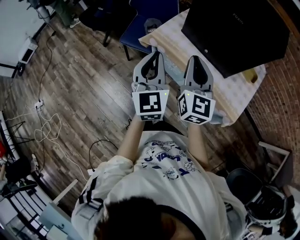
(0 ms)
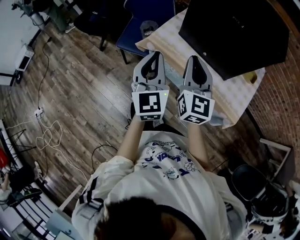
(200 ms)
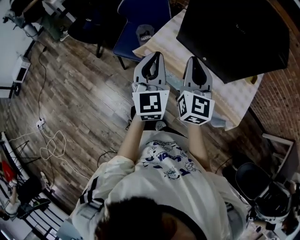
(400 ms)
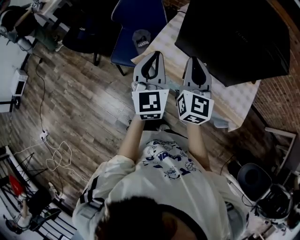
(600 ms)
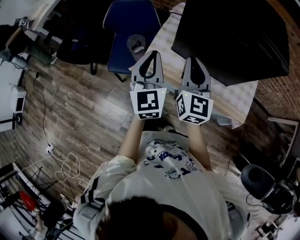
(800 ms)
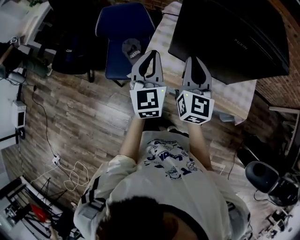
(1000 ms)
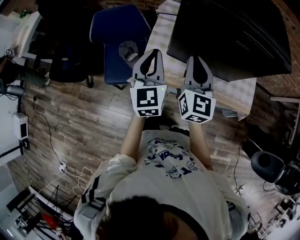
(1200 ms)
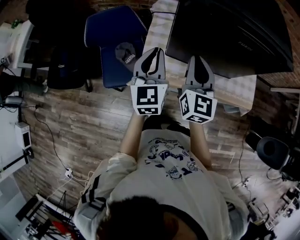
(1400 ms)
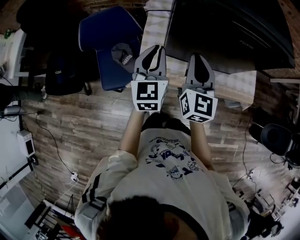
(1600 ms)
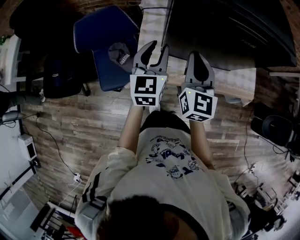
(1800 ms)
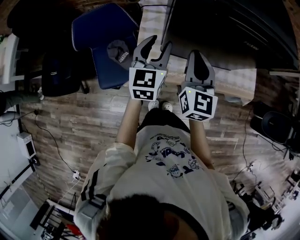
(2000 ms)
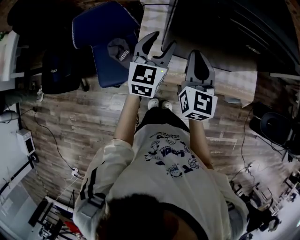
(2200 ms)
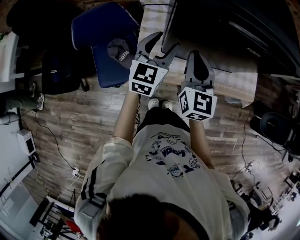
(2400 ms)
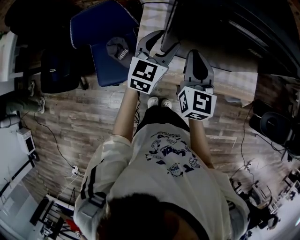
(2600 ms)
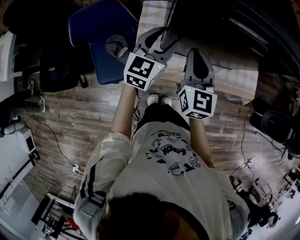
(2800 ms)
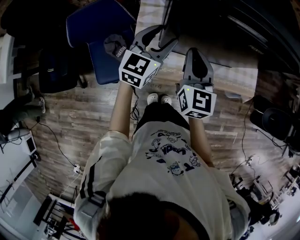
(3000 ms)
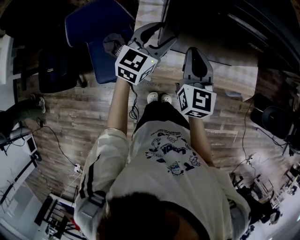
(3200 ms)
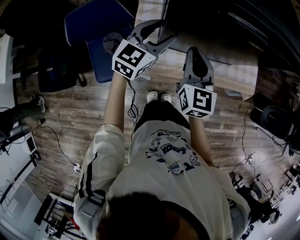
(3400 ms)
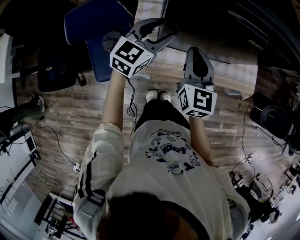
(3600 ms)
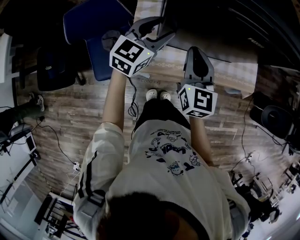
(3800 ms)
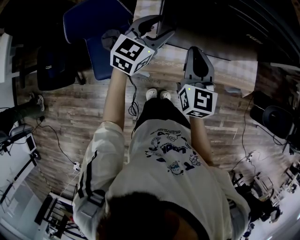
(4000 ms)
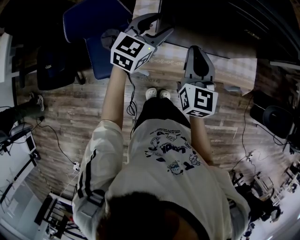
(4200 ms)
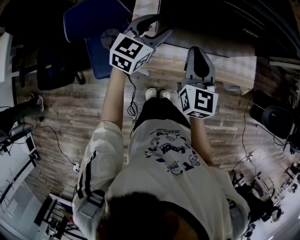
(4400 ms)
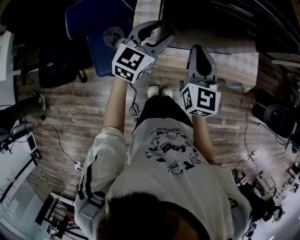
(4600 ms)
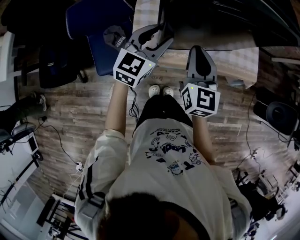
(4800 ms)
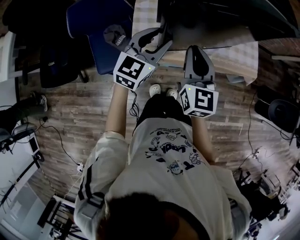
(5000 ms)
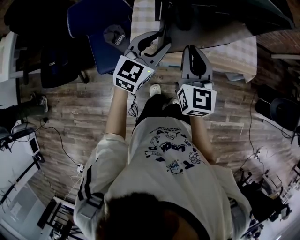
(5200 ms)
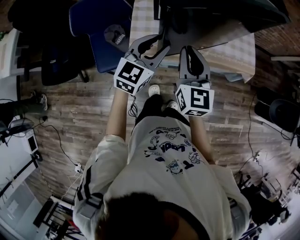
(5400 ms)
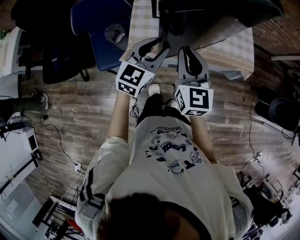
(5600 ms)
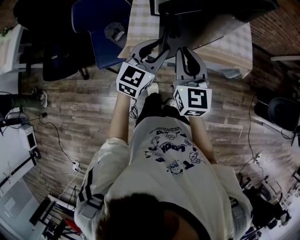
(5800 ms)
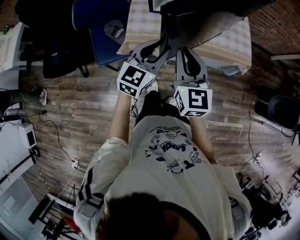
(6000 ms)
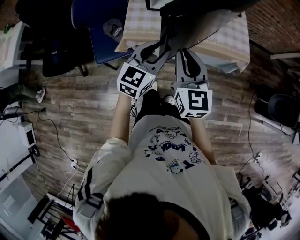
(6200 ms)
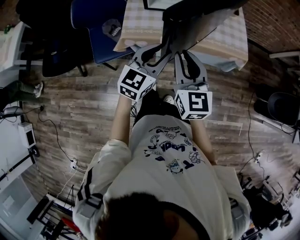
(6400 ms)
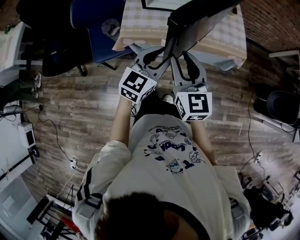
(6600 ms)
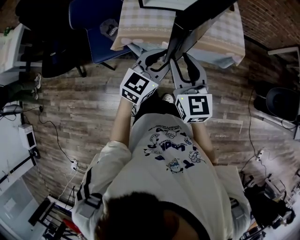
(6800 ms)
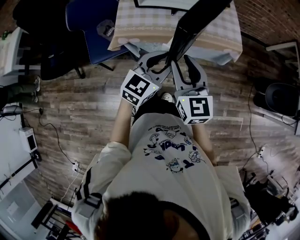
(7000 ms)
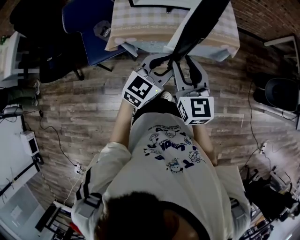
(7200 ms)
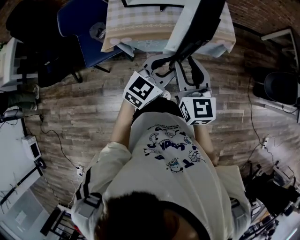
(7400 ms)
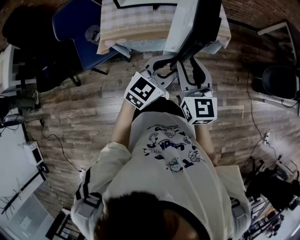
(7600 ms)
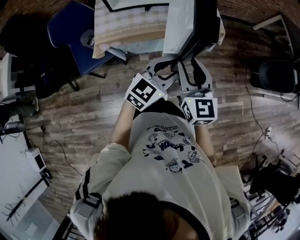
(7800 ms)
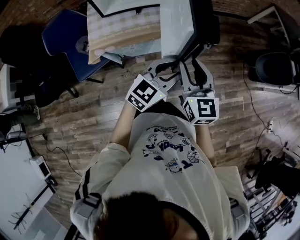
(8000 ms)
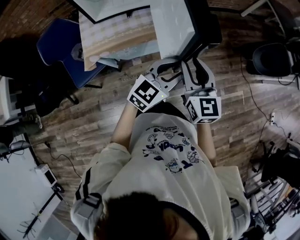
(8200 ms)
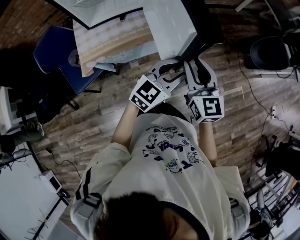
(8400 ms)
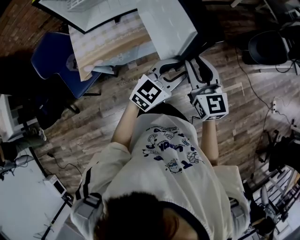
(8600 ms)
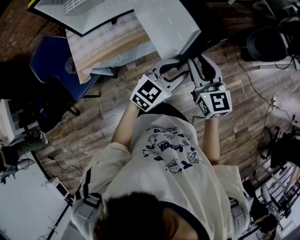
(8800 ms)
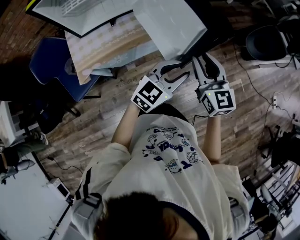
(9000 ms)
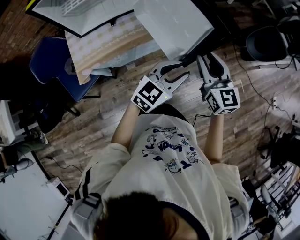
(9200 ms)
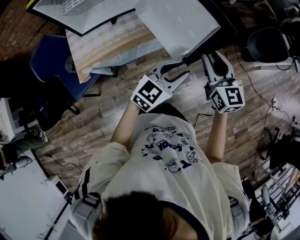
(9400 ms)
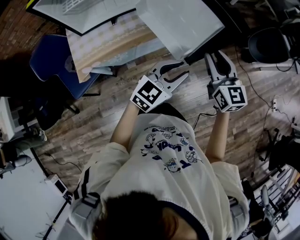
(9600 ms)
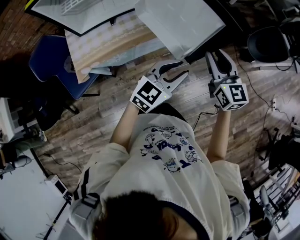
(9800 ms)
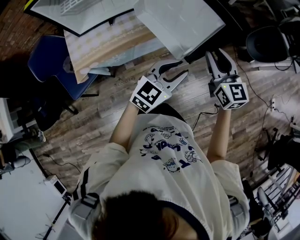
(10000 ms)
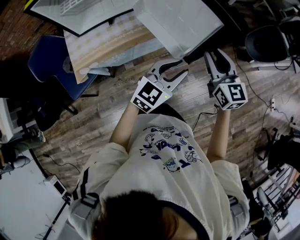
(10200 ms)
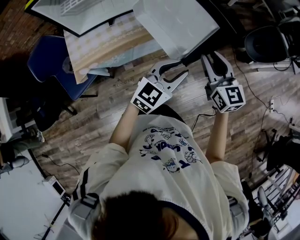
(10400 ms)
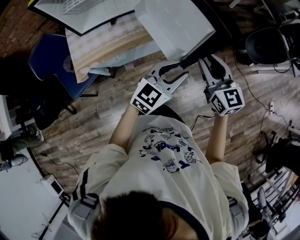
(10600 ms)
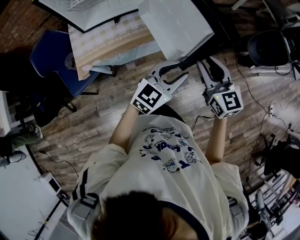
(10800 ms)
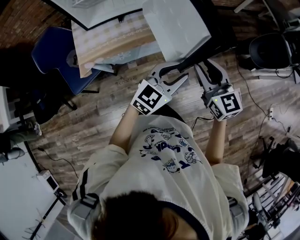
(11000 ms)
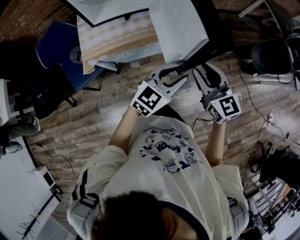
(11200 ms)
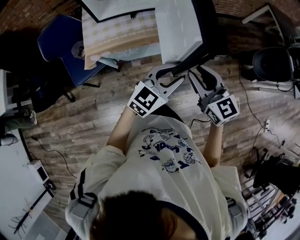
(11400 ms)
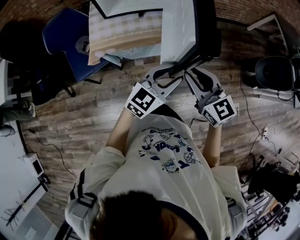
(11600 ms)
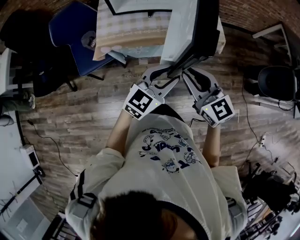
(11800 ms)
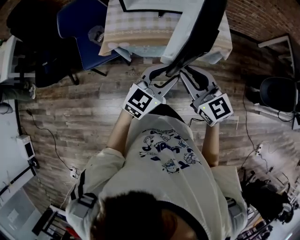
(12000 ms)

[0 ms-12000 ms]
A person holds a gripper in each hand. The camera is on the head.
0 ms to 1600 ms: The right gripper moves roughly 25 cm, and rotates roughly 40 degrees. The left gripper ends up about 35 cm from where it was, and swivels about 40 degrees.
1600 ms to 3000 ms: The left gripper travels forward by about 5 cm, turns by some 30 degrees, and opens its fingers.
3000 ms to 4400 ms: There are only small adjustments of the grippers.
4400 ms to 6000 ms: The right gripper heads backward, covering about 20 cm; the left gripper shifts some 25 cm backward and to the right.
6000 ms to 7600 ms: Both grippers travel together to the right and backward, some 20 cm. The right gripper opens, while the left gripper rotates some 20 degrees.
7600 ms to 9000 ms: The left gripper travels to the right by roughly 15 cm, and changes its angle by about 20 degrees. Meanwhile the right gripper heads to the right and forward, covering some 20 cm.
9000 ms to 10400 ms: The right gripper shifts by about 5 cm.
10400 ms to 12000 ms: The left gripper shifts by roughly 20 cm, and changes its angle by some 20 degrees. Meanwhile the right gripper ends up about 25 cm from where it was, and rotates approximately 40 degrees.

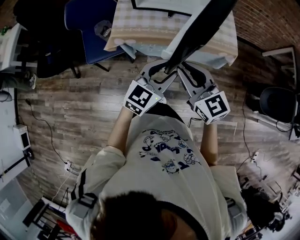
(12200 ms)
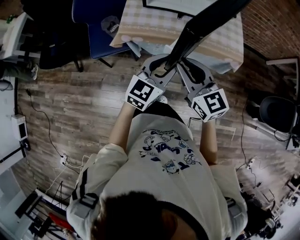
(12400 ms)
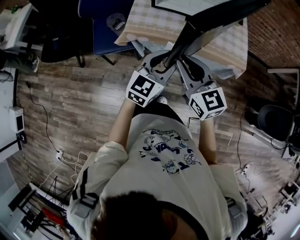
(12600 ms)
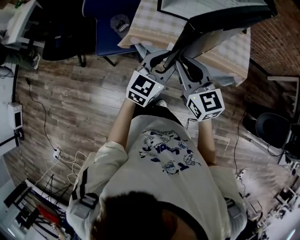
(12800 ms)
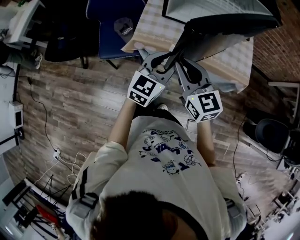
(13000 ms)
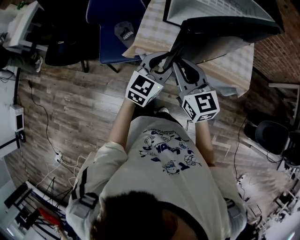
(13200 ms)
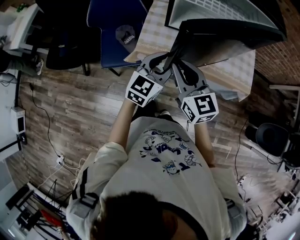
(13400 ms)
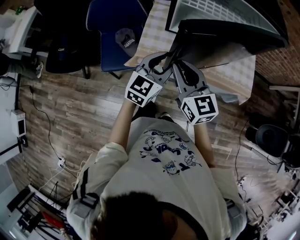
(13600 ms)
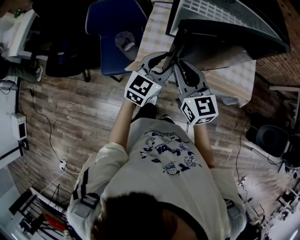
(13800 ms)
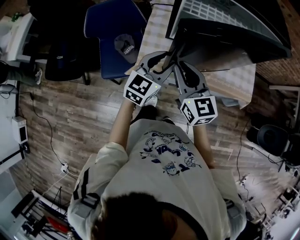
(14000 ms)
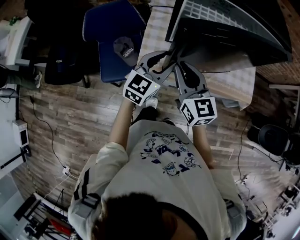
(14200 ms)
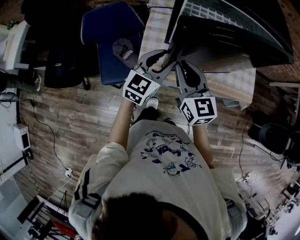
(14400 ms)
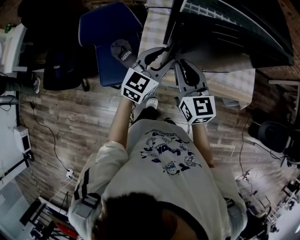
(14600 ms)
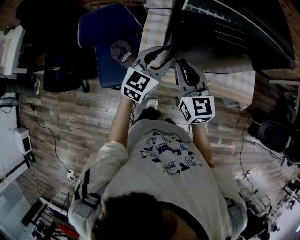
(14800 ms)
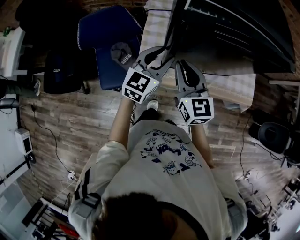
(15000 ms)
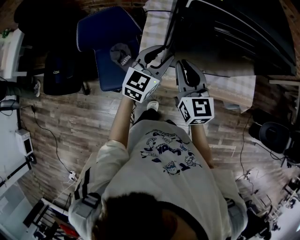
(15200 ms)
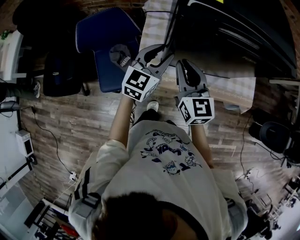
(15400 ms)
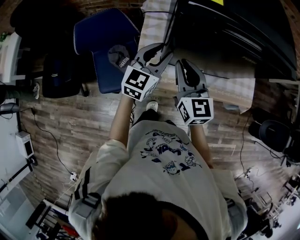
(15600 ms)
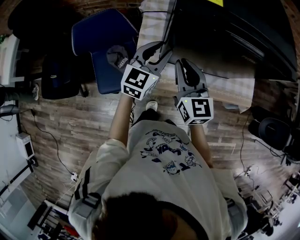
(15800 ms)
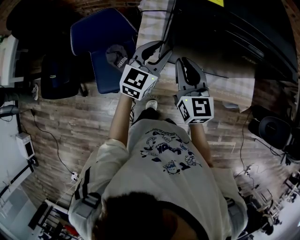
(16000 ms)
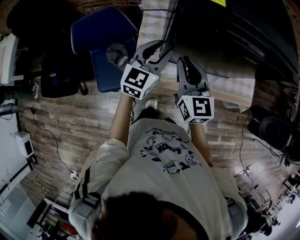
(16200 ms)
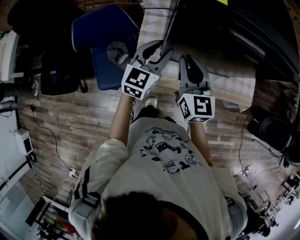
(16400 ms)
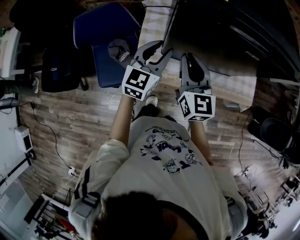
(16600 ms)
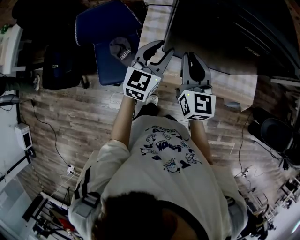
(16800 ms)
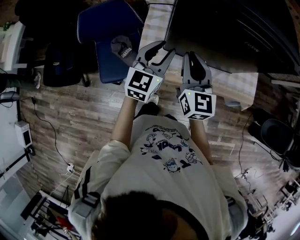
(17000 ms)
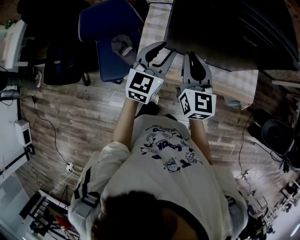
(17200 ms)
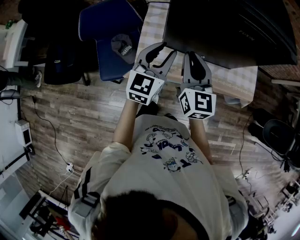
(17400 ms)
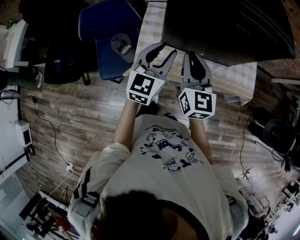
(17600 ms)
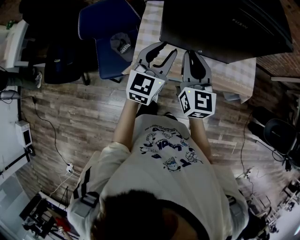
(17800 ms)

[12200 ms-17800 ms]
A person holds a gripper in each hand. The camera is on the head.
12200 ms to 13600 ms: Both grippers move forward and to the left, roughly 25 cm.
13600 ms to 15000 ms: The two grippers go about 15 cm forward.
15000 ms to 16400 ms: Both grippers travel together forward, roughly 5 cm.
16400 ms to 17800 ms: The left gripper travels backward by about 10 cm. Meanwhile the right gripper travels backward and to the right by about 10 cm.

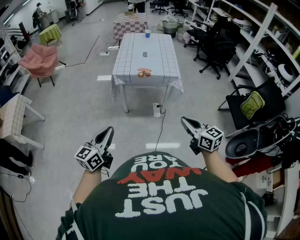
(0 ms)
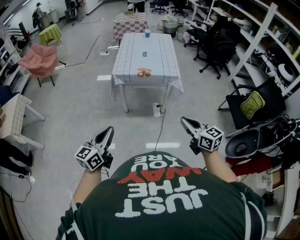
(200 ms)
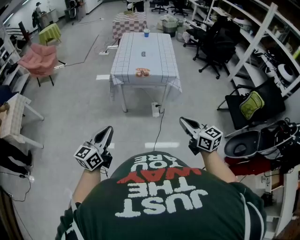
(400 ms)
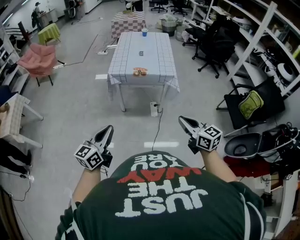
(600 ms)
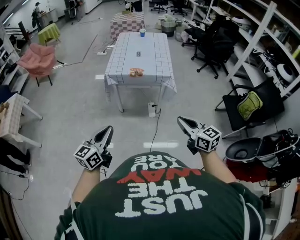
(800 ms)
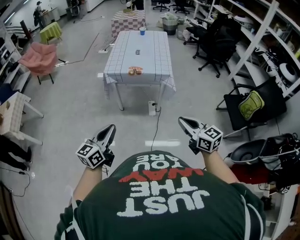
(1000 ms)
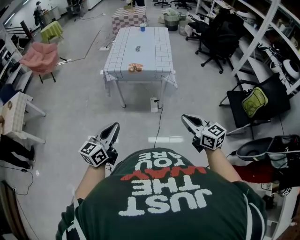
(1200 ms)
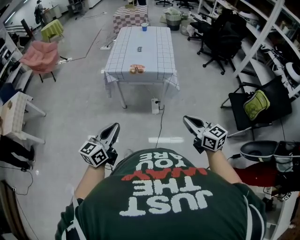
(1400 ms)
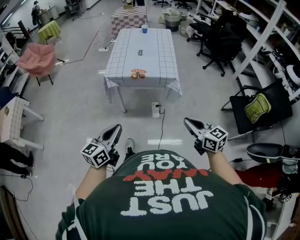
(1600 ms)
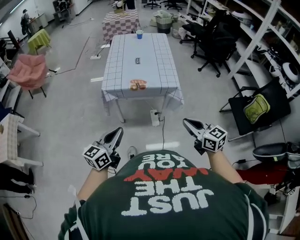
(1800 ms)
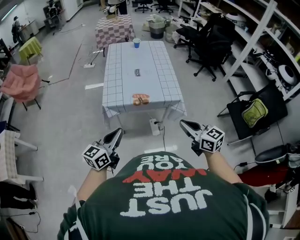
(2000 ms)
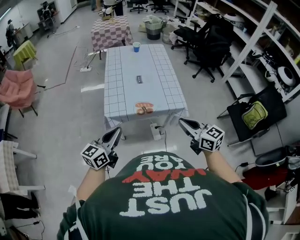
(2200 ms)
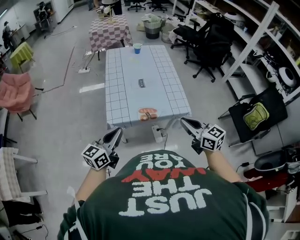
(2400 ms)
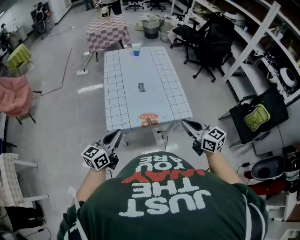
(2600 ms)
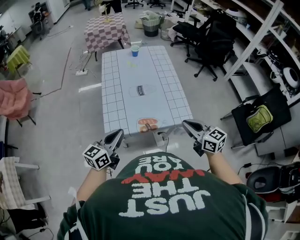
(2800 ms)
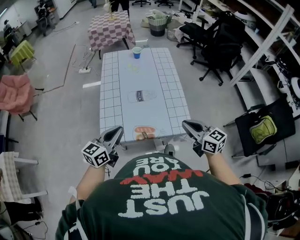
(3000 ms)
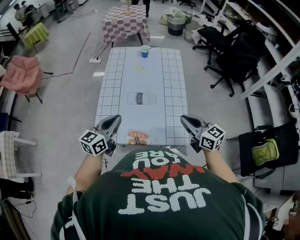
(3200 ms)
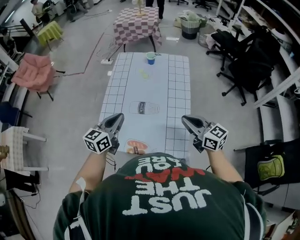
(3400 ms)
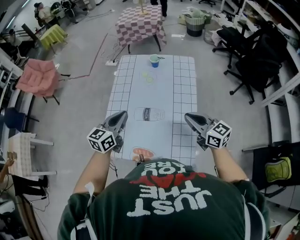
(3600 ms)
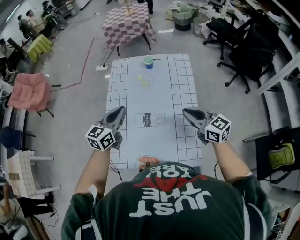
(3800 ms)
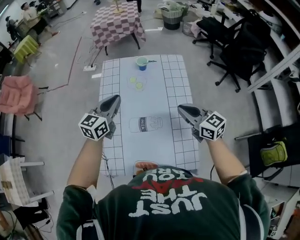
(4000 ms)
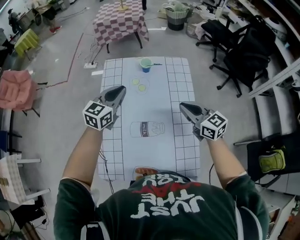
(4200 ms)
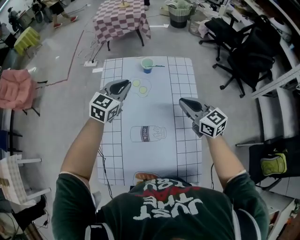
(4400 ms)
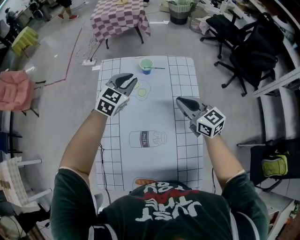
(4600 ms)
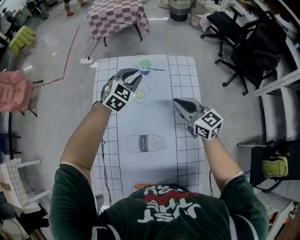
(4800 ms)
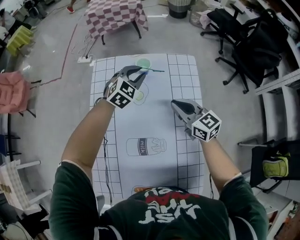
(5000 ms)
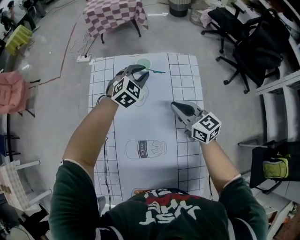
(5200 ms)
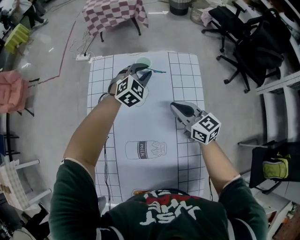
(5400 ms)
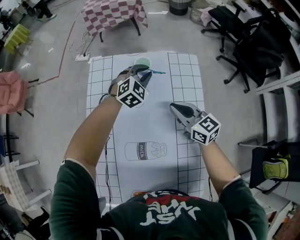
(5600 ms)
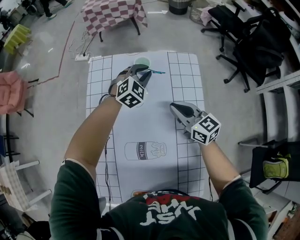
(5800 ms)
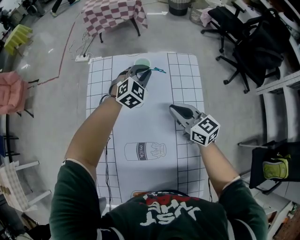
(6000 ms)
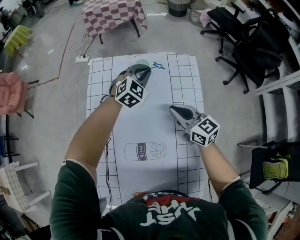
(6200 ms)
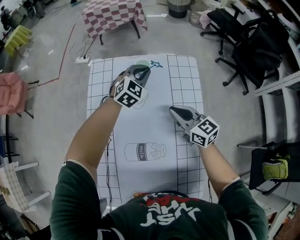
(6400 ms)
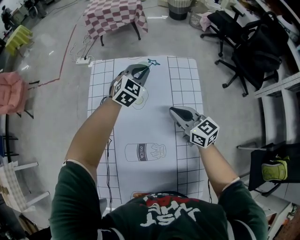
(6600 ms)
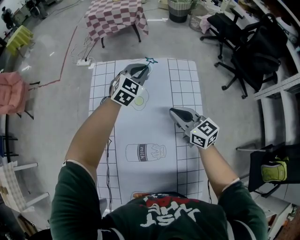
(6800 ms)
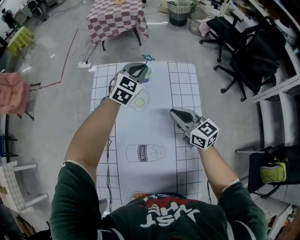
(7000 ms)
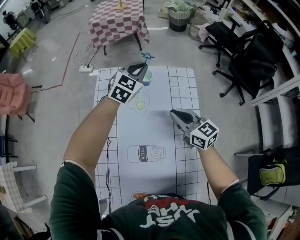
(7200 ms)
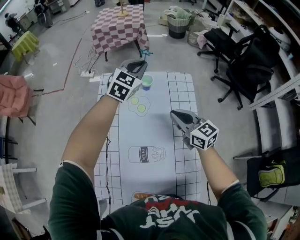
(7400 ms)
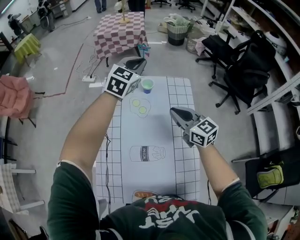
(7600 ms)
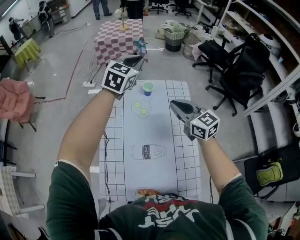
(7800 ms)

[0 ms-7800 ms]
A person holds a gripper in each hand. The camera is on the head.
0 ms to 1600 ms: Both grippers travel together to the right and forward, about 15 cm.
1600 ms to 3200 ms: Both grippers are carried forward, approximately 60 cm.
3200 ms to 4600 ms: Both grippers move forward, approximately 35 cm. The left gripper swivels roughly 40 degrees.
4600 ms to 6200 ms: The right gripper moves downward and forward, some 10 cm. The left gripper moves forward, downward and to the right, approximately 20 cm.
6200 ms to 7800 ms: Both grippers travel together upward, about 25 cm. The left gripper rotates approximately 20 degrees.
